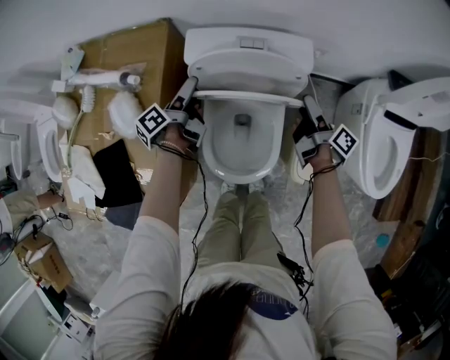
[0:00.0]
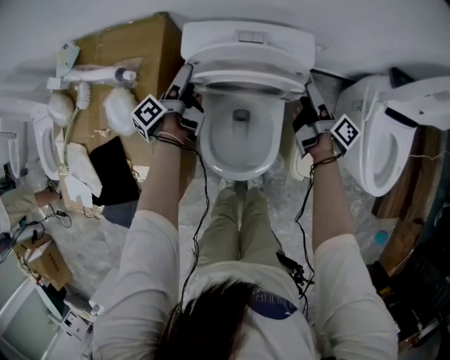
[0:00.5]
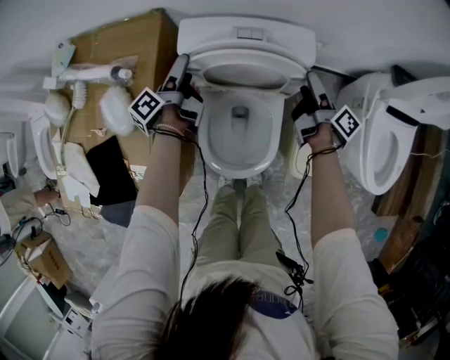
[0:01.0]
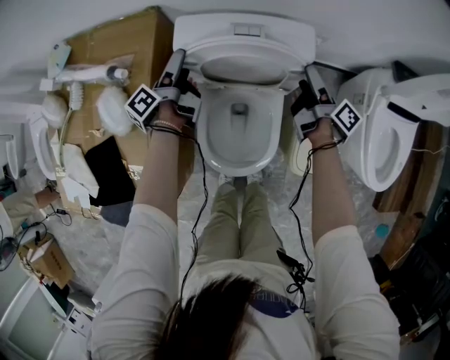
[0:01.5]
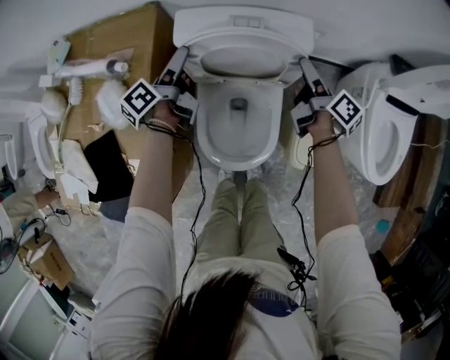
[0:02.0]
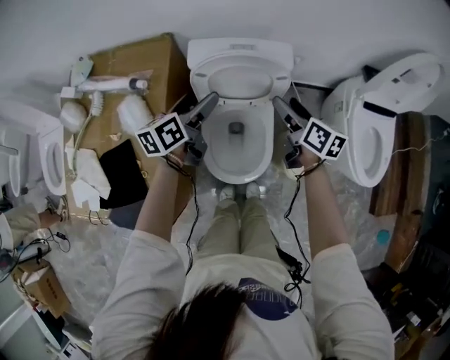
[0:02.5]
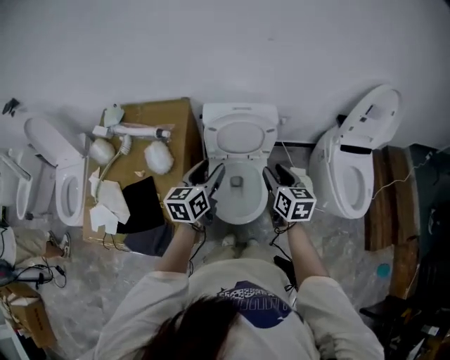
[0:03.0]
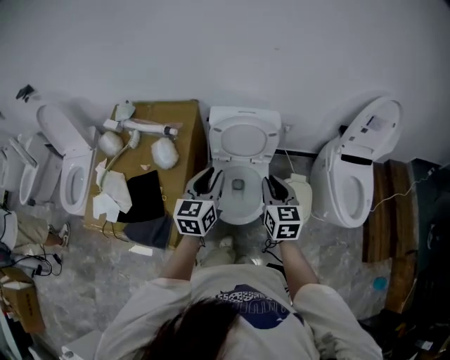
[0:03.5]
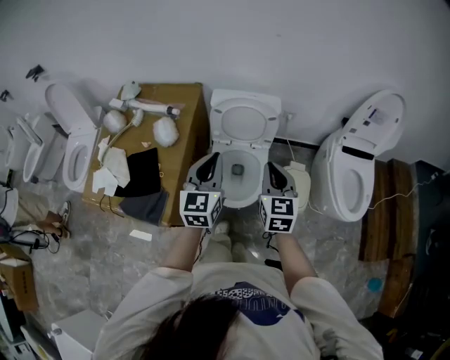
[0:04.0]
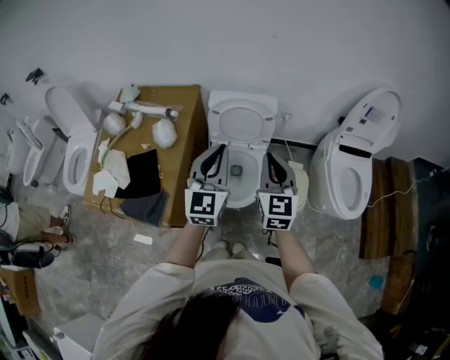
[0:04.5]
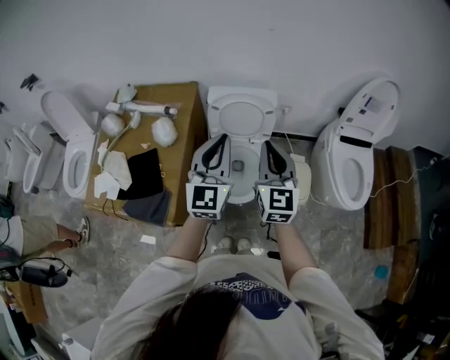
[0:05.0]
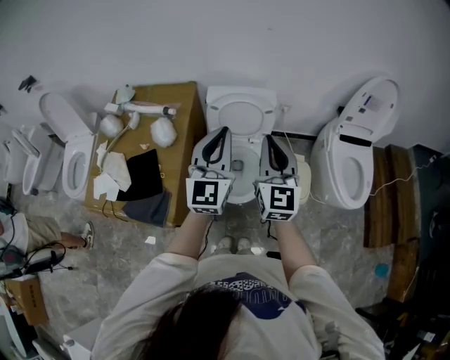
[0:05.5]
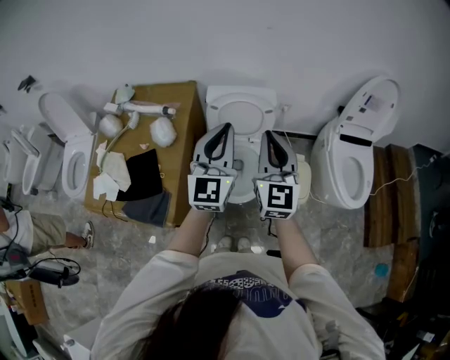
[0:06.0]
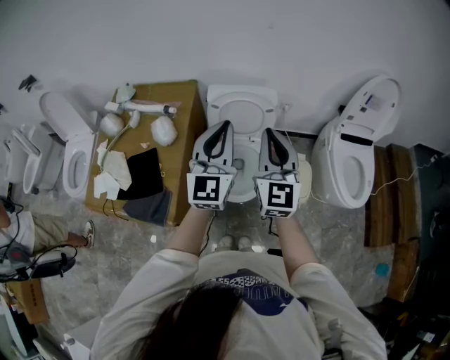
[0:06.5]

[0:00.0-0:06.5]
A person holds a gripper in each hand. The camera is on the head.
0.0 to 2.0 s: The right gripper ends up roughly 5 cm from where it was.
2.0 to 4.5 s: Both grippers travel together backward and upward, some 50 cm. The right gripper rotates around the line of its fingers by some 80 degrees, counterclockwise from behind, and closes, while the left gripper rotates around the line of its fingers by some 80 degrees, clockwise from behind, and closes its fingers.
4.5 to 6.5 s: The right gripper heads upward, covering approximately 5 cm. Meanwhile the left gripper shifts by some 5 cm.

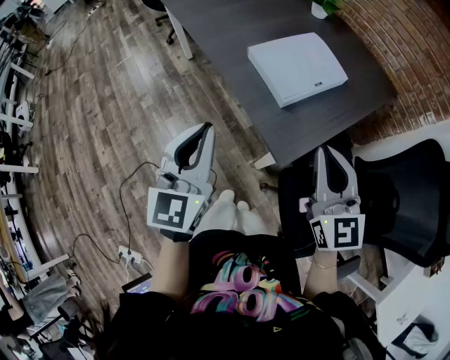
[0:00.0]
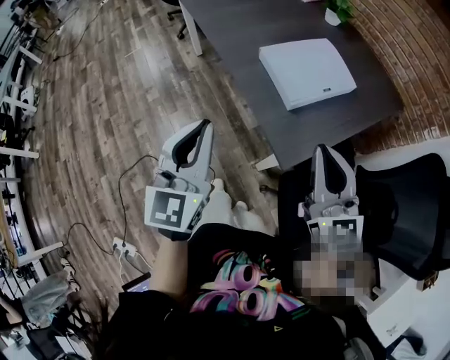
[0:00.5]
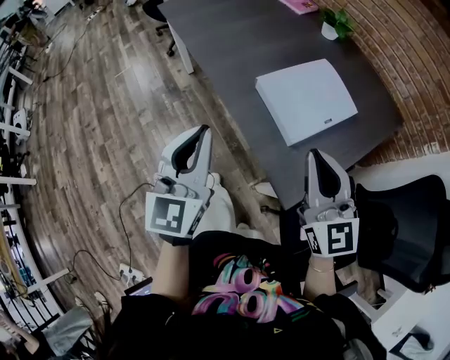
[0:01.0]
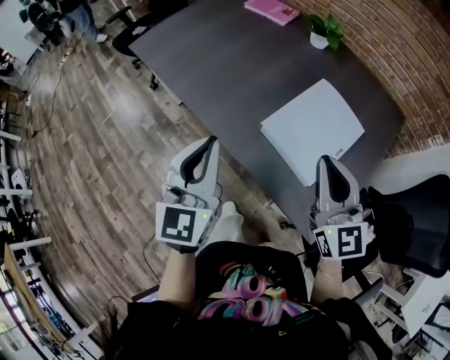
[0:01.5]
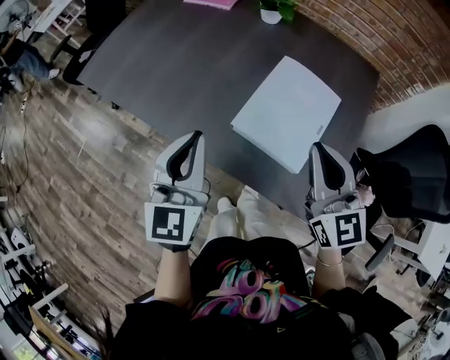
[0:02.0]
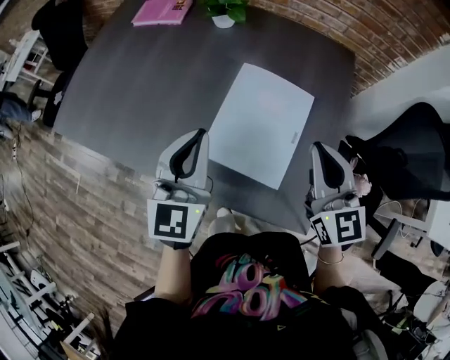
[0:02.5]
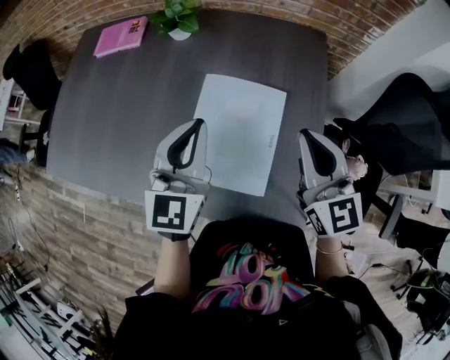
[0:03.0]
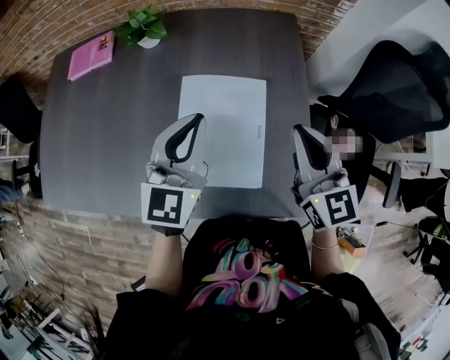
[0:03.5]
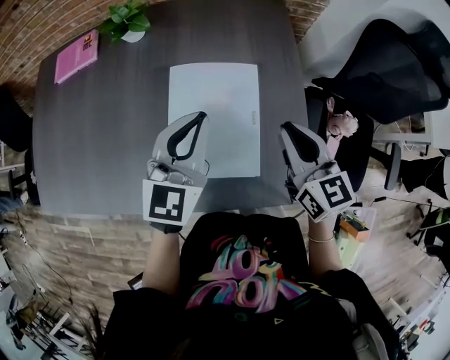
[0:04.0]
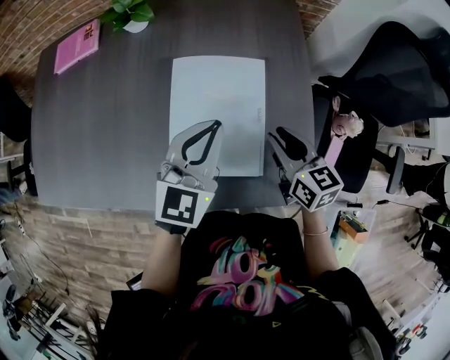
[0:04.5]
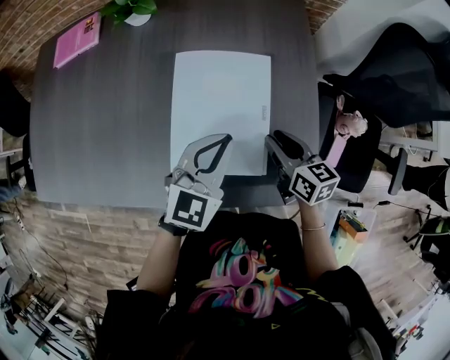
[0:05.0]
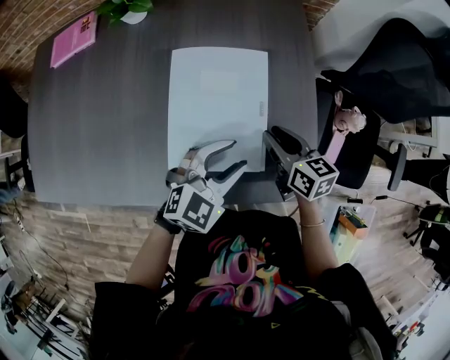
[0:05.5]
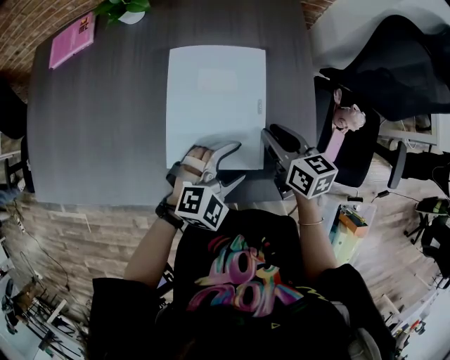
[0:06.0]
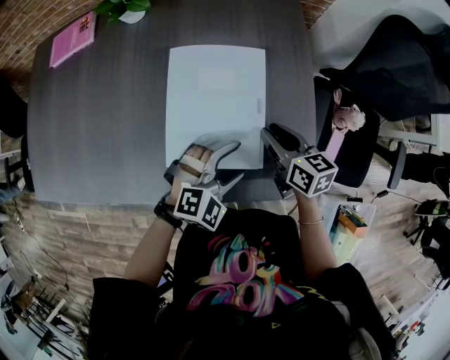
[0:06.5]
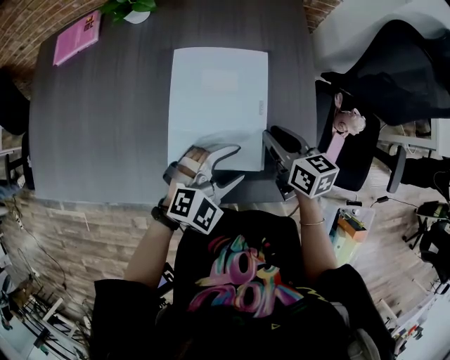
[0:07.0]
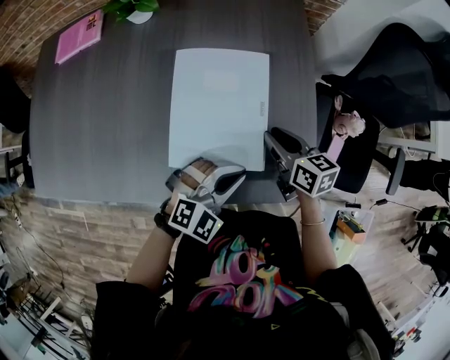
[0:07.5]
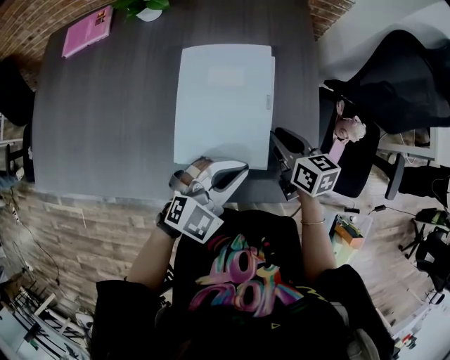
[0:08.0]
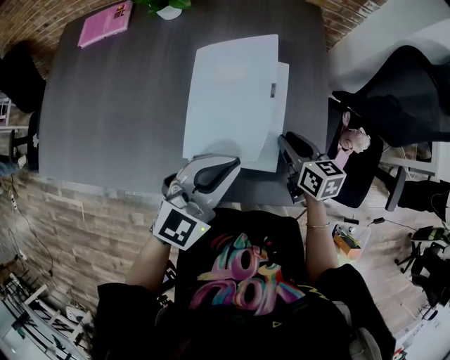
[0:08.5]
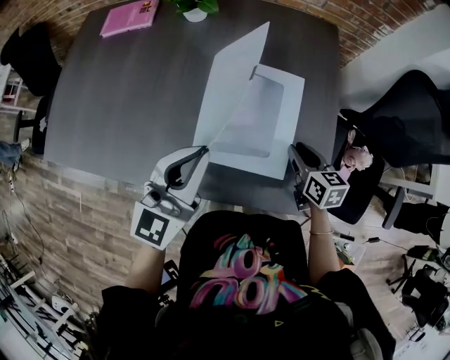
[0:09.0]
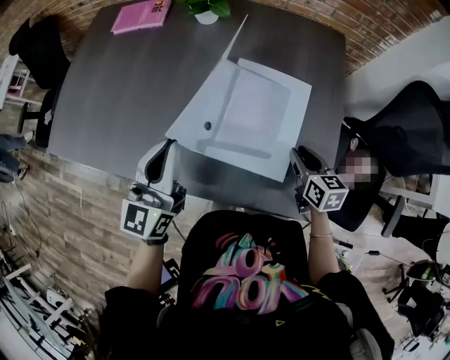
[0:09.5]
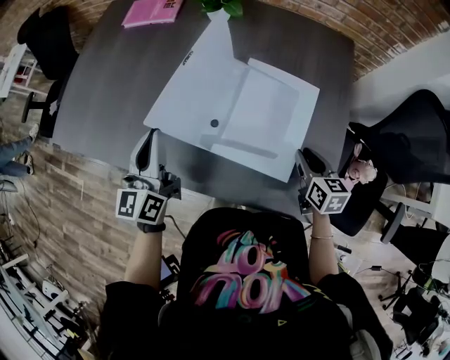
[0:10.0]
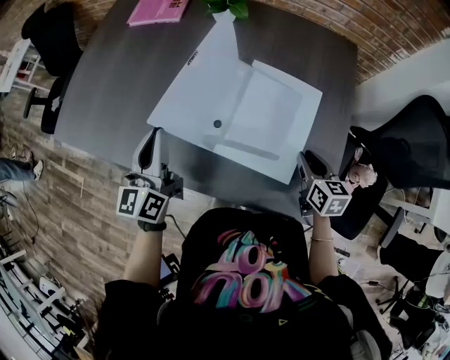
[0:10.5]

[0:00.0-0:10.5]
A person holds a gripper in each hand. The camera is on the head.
0.0 to 2.0 s: The right gripper moves about 25 cm, and turns by approximately 20 degrees. The left gripper shifts by about 35 cm, and rotates approximately 30 degrees.
2.0 to 4.0 s: The right gripper moves about 20 cm, and changes its angle by some 30 degrees. Meanwhile the left gripper moves some 25 cm, and turns by roughly 40 degrees.
4.0 to 6.5 s: The left gripper moves downward, backward and to the right, roughly 20 cm, rotates some 50 degrees, and opens its fingers. The right gripper moves downward, approximately 15 cm, and changes its angle by roughly 30 degrees.
6.5 to 8.5 s: The left gripper heads upward and to the left, covering roughly 15 cm, points its fingers about 30 degrees further upward, and closes its fingers.
8.5 to 10.5 s: The left gripper heads to the left, covering some 25 cm, and rotates about 60 degrees.

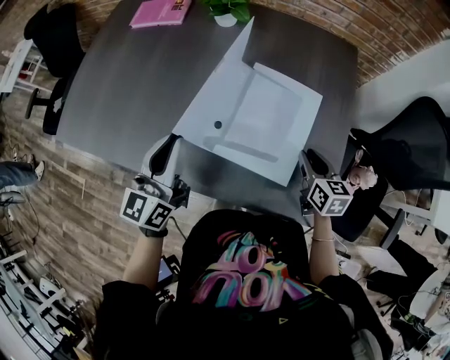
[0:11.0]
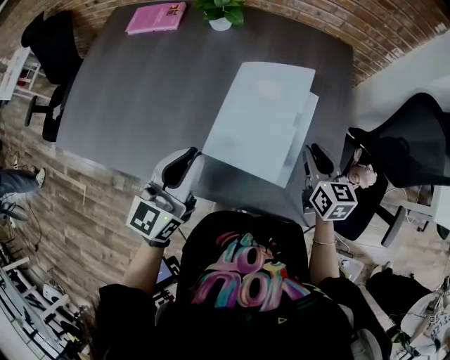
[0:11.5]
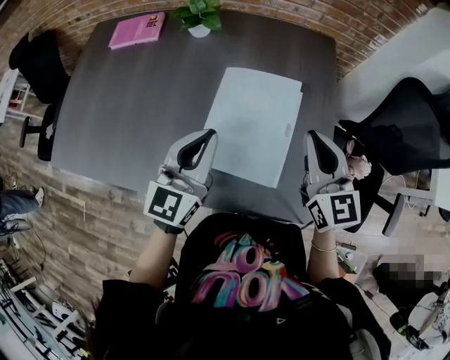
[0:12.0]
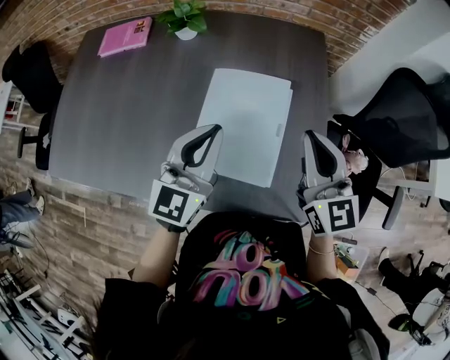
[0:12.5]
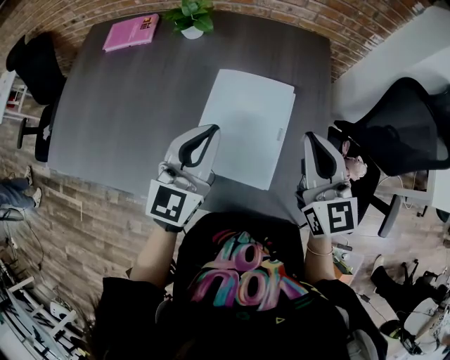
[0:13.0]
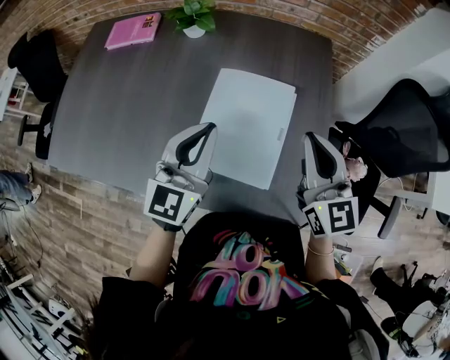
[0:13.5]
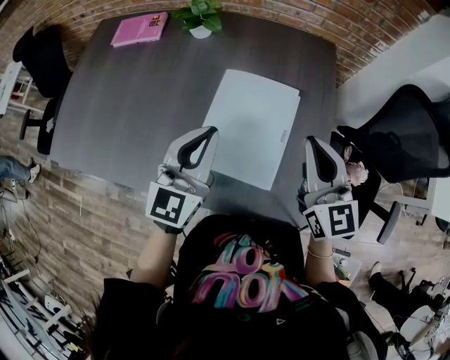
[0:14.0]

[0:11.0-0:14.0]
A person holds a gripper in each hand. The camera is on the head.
11.0 to 12.5 s: The left gripper is displaced to the right by roughly 15 cm, and changes its angle by about 20 degrees. The right gripper goes roughly 20 cm upward, swivels approximately 40 degrees, and closes its fingers.
12.5 to 14.0 s: The grippers move only a little.

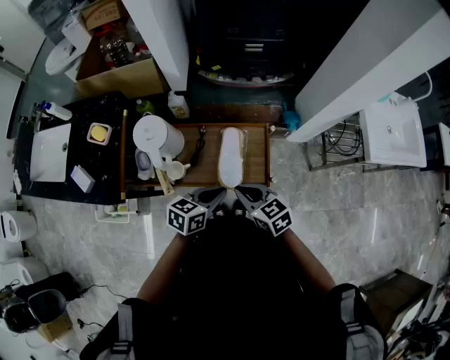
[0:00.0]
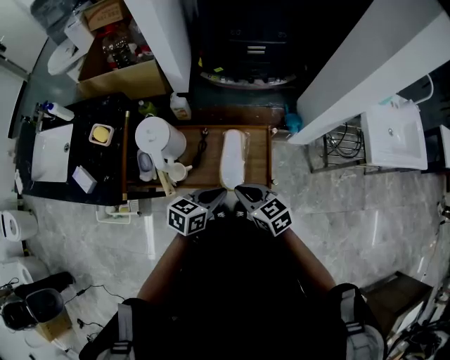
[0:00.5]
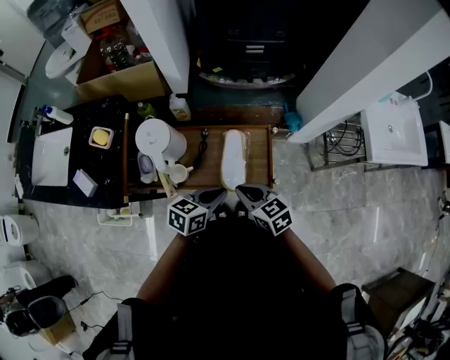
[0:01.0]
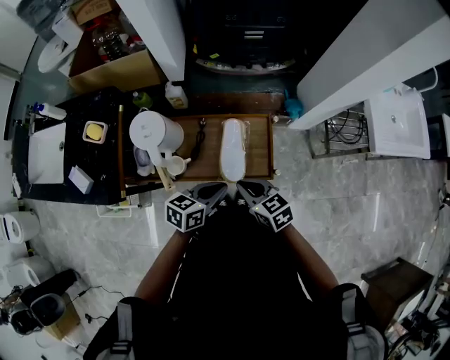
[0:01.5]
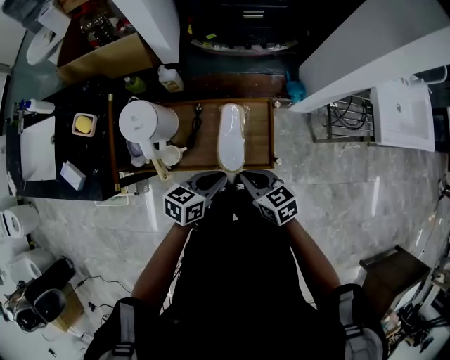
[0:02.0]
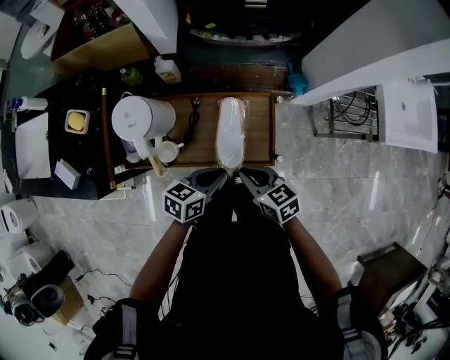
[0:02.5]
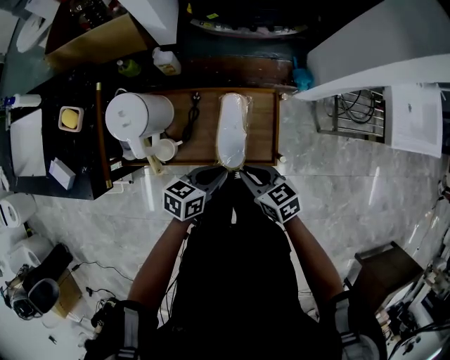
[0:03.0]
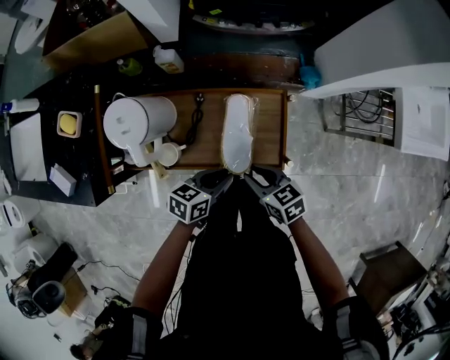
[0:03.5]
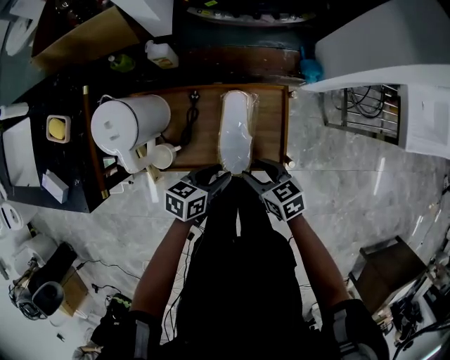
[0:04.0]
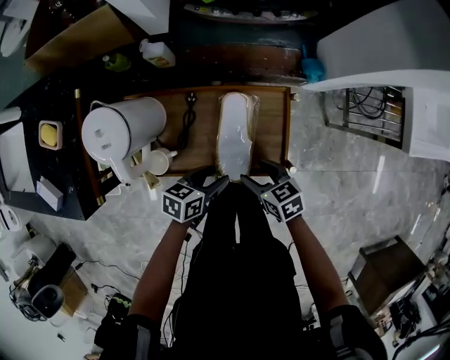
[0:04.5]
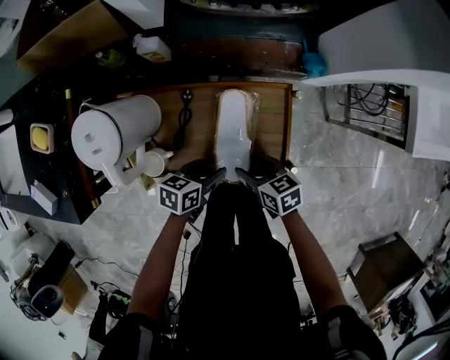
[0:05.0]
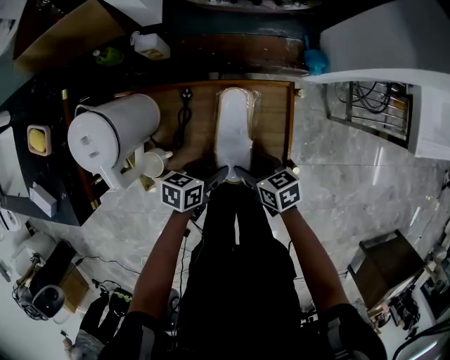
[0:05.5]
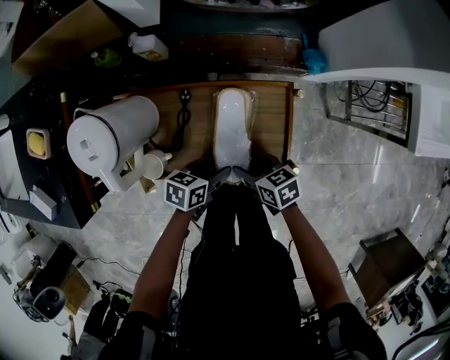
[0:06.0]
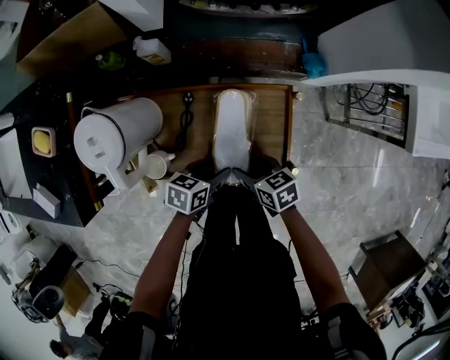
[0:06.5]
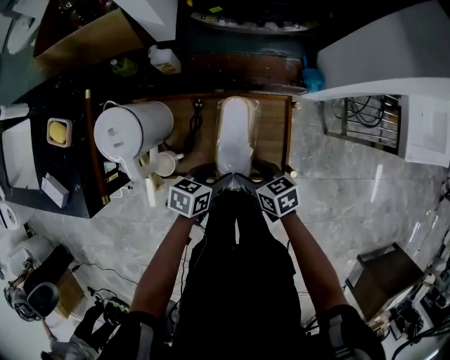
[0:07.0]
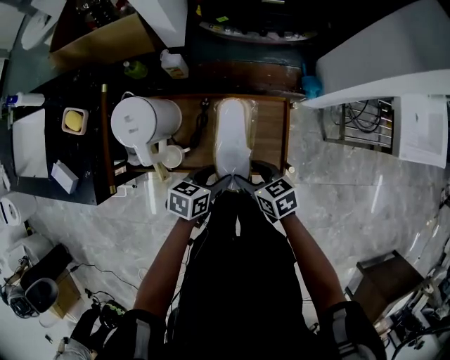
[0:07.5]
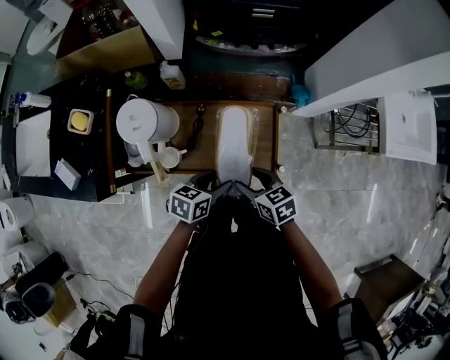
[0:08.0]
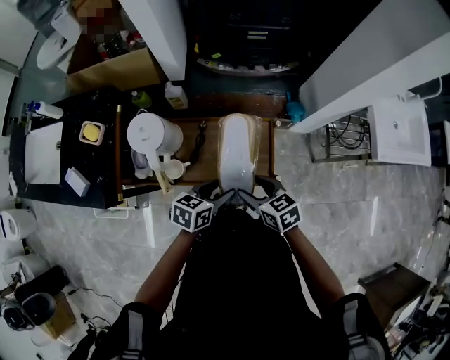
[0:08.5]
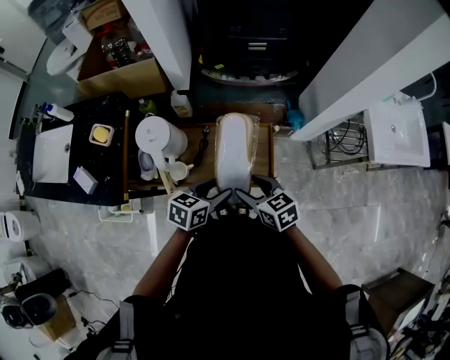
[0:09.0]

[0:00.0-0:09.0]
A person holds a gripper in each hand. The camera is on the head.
0.0 to 2.0 s: The grippers stay close to where they were, moving slightly.
2.0 to 4.5 s: The grippers both shift downward by roughly 15 cm. The left gripper opens its fingers, while the right gripper opens.
4.5 to 7.0 s: The grippers stay close to where they were, moving slightly.
7.0 to 9.0 s: Both grippers move upward, some 20 cm.
